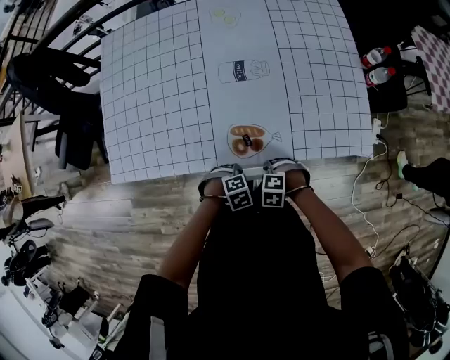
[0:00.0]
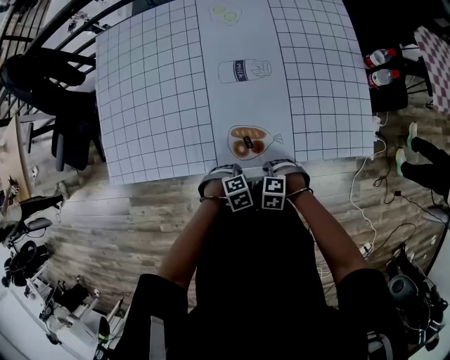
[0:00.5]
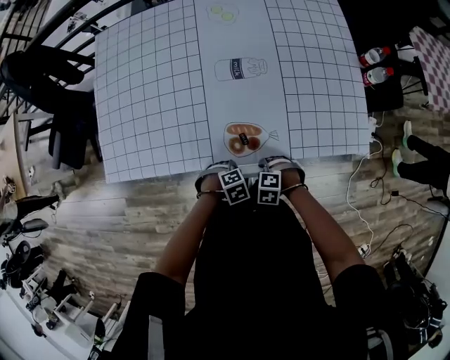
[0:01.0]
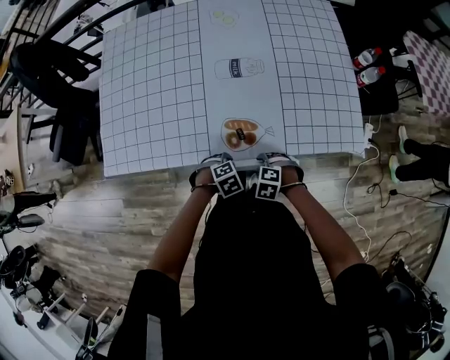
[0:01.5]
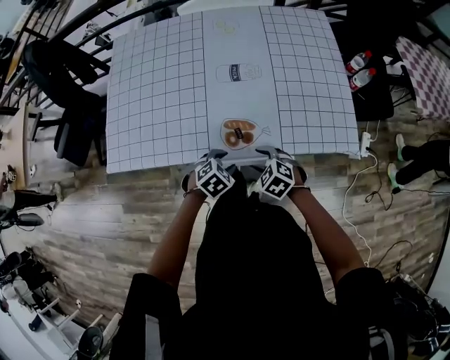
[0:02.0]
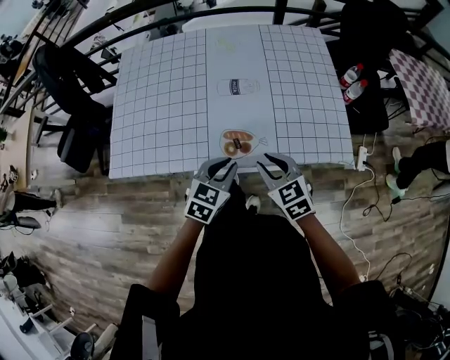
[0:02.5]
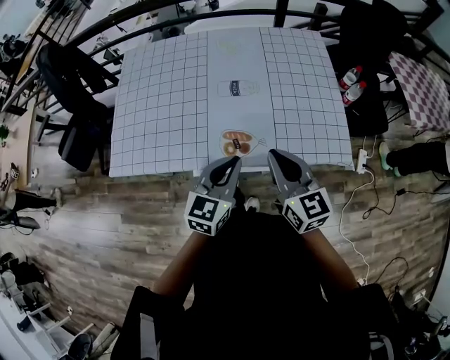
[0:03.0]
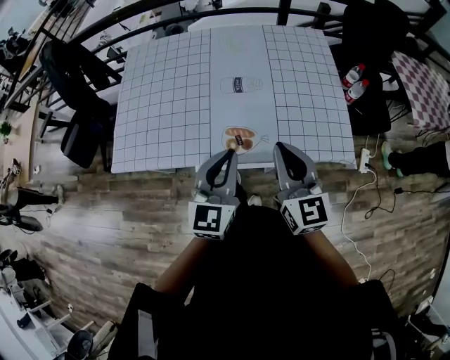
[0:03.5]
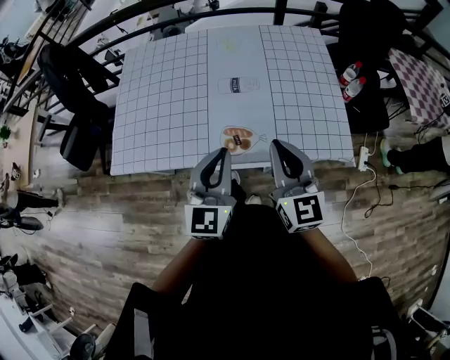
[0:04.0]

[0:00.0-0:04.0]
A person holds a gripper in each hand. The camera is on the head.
0:00.0 to 0:02.0: Both grippers move upward, about 10 cm. The right gripper rotates approximately 30 degrees, and opens up; the left gripper rotates roughly 30 degrees, and opens up.
0:02.0 to 0:04.0: Both grippers move upward, some 30 cm. The left gripper tips its fingers upward by approximately 60 degrees, and closes its fingers, while the right gripper tilts its fingers approximately 50 degrees upward, and closes its fingers.

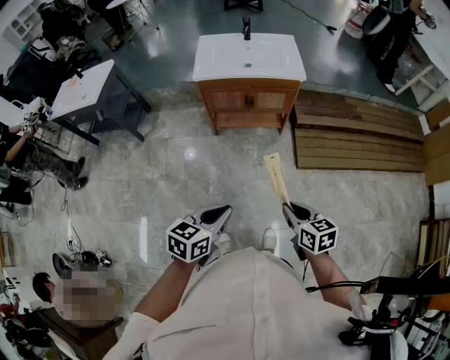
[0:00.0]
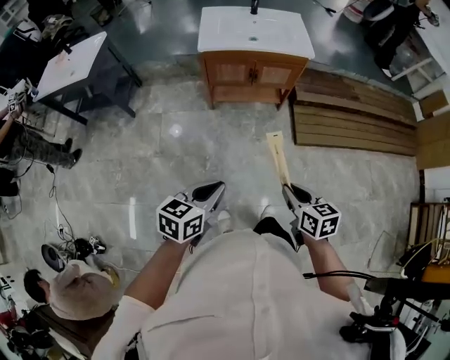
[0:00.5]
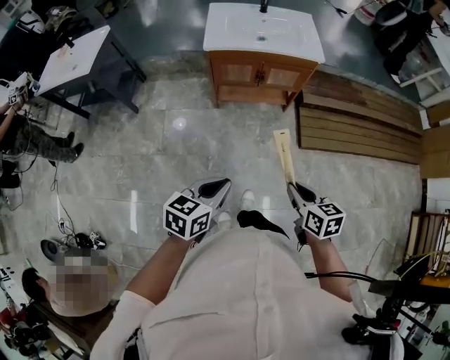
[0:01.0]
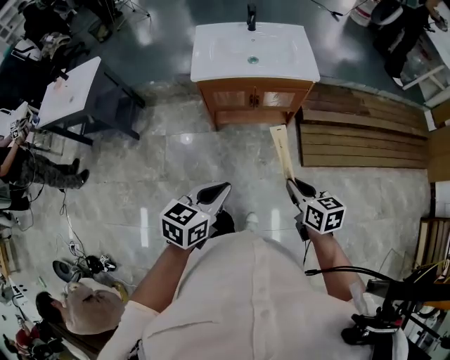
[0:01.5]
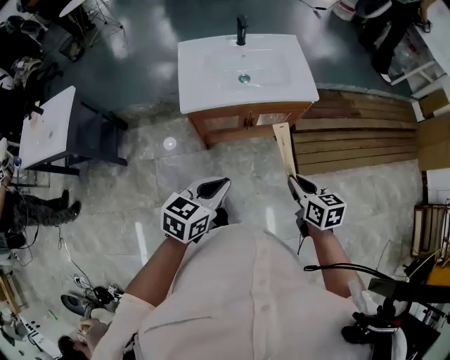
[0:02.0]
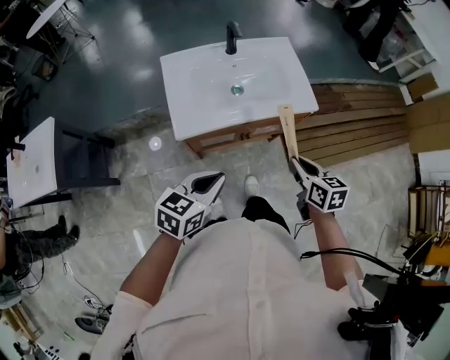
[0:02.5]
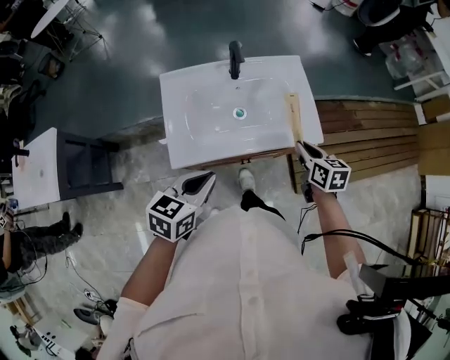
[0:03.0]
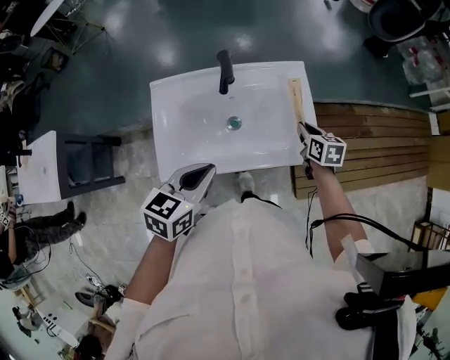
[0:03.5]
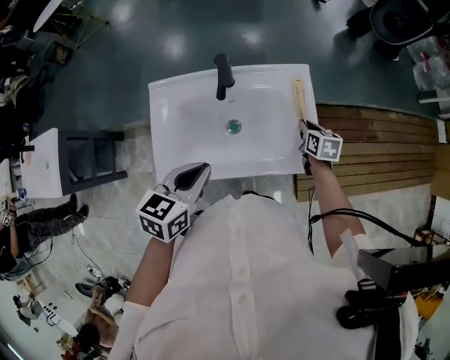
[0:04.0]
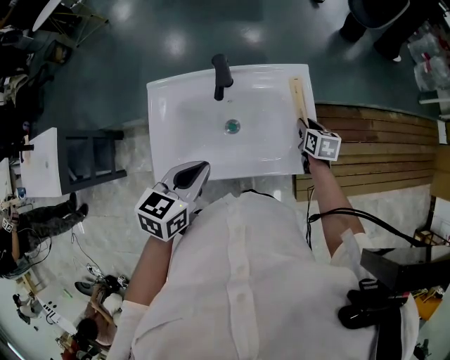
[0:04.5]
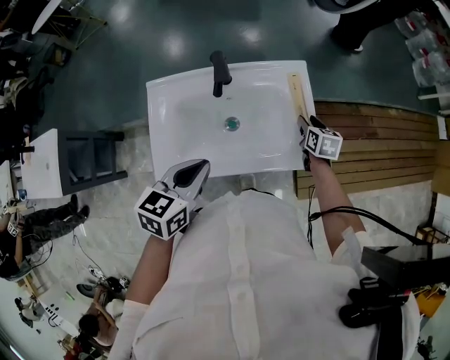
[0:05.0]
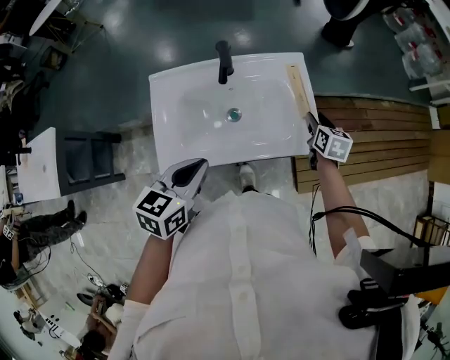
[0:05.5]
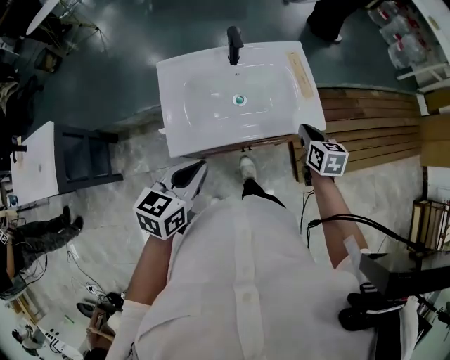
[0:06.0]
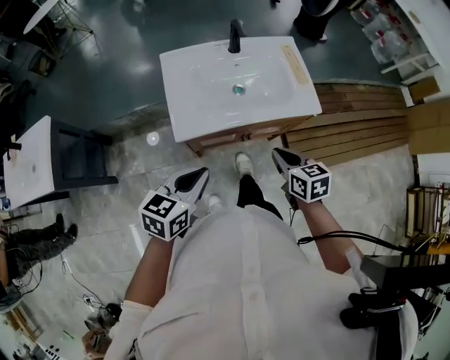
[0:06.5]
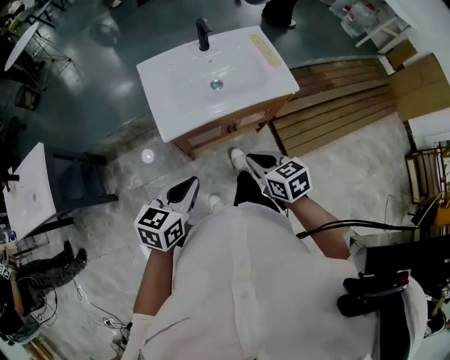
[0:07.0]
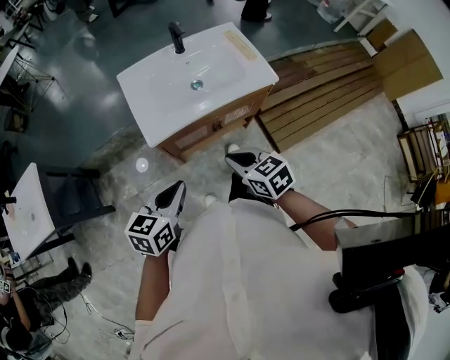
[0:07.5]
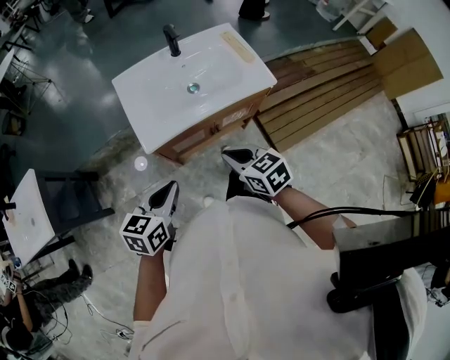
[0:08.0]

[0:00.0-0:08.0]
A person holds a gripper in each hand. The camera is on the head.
0:00.0 to 0:02.0: Both grippers move forward, approximately 35 cm.
0:02.0 to 0:04.0: Both grippers move forward, some 50 cm.
0:04.0 to 0:06.0: The right gripper moves backward and upward, about 20 cm, and opens, then closes again. The left gripper moves backward, some 15 cm.
0:06.0 to 0:08.0: The left gripper heads backward, covering approximately 15 cm, while the right gripper moves backward and to the left, approximately 30 cm, and turns by approximately 20 degrees.

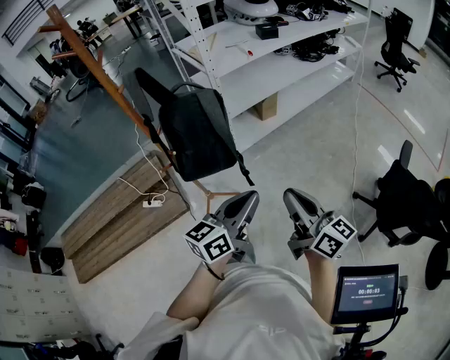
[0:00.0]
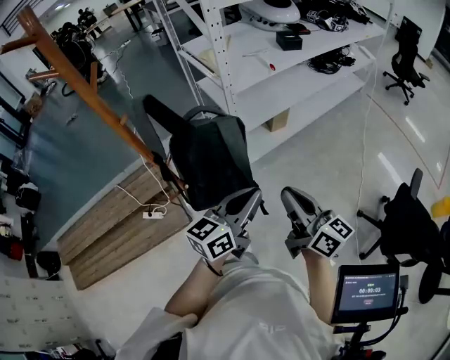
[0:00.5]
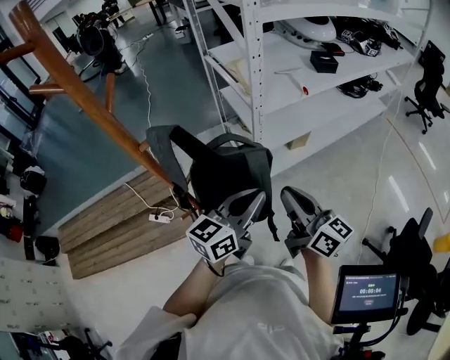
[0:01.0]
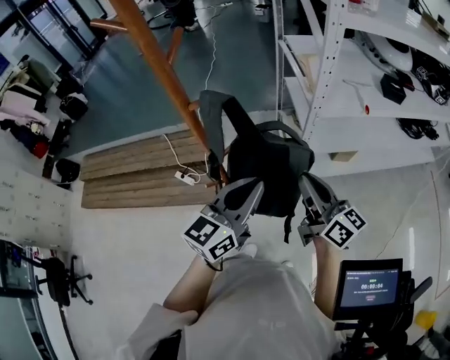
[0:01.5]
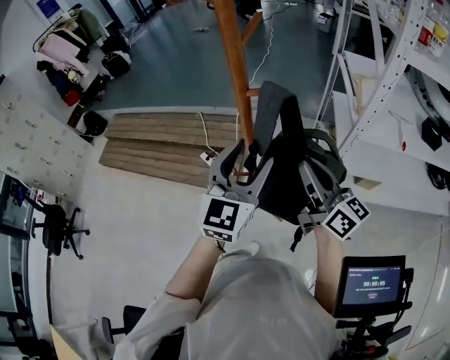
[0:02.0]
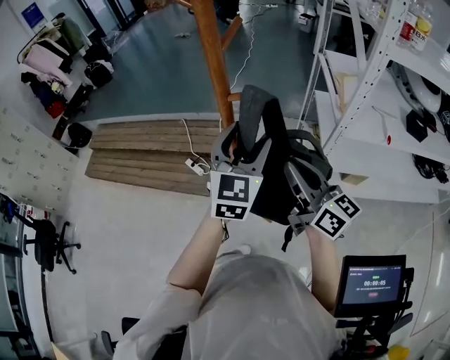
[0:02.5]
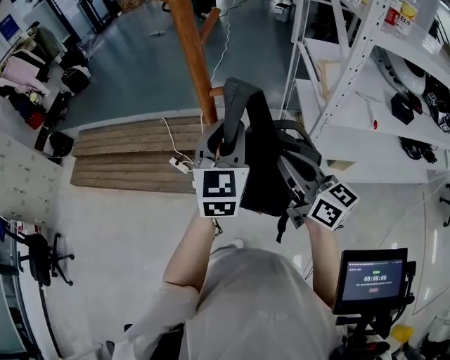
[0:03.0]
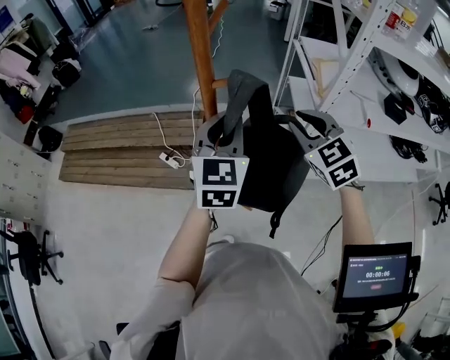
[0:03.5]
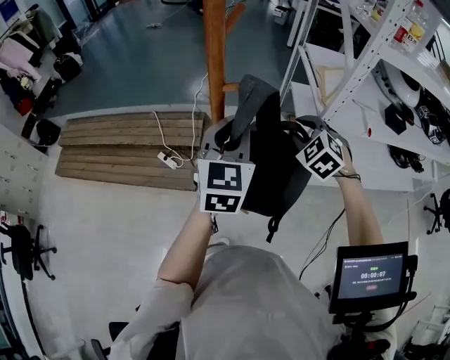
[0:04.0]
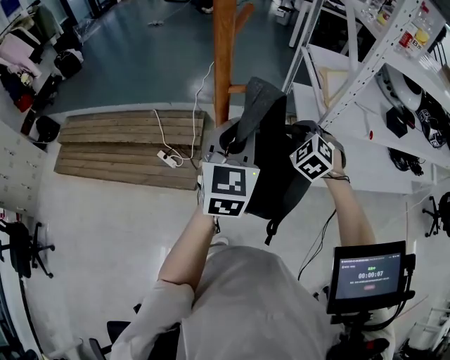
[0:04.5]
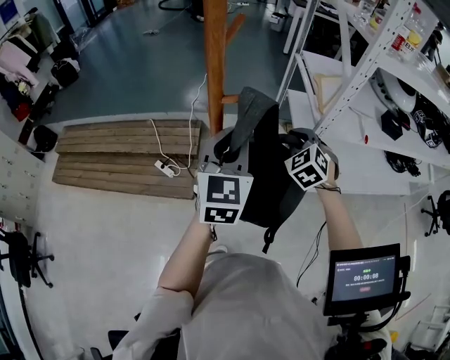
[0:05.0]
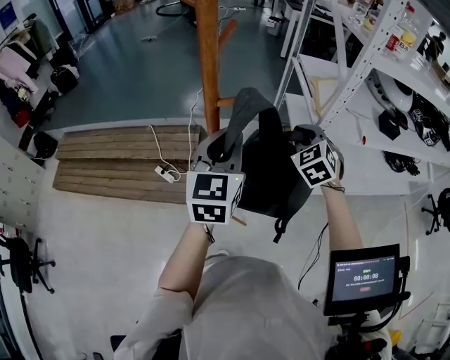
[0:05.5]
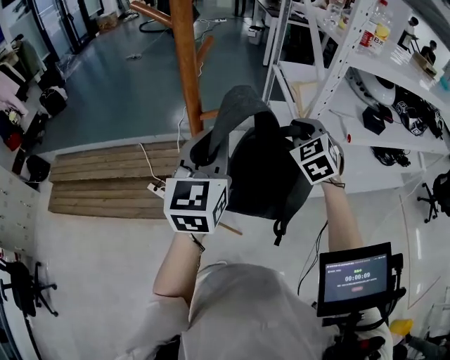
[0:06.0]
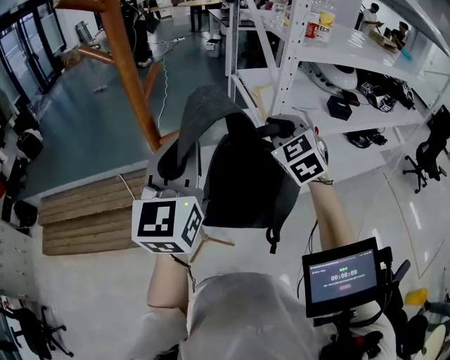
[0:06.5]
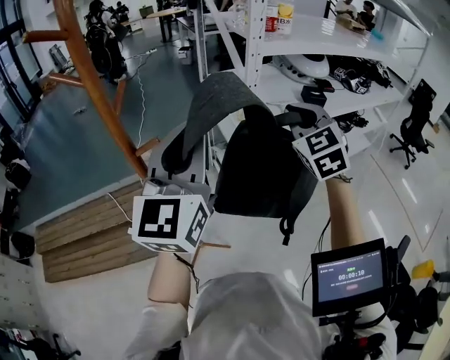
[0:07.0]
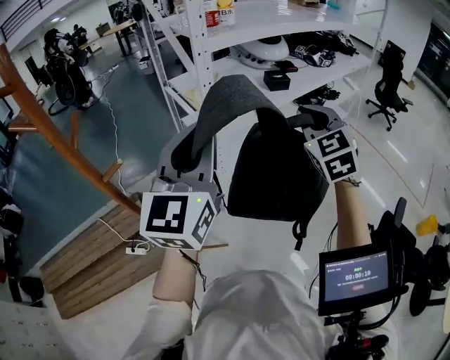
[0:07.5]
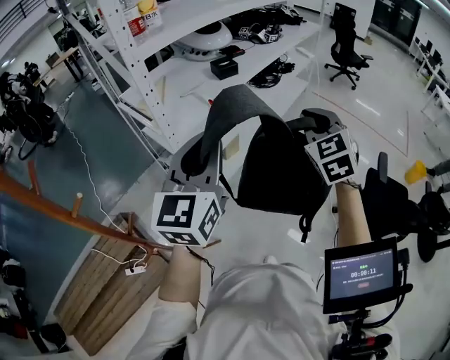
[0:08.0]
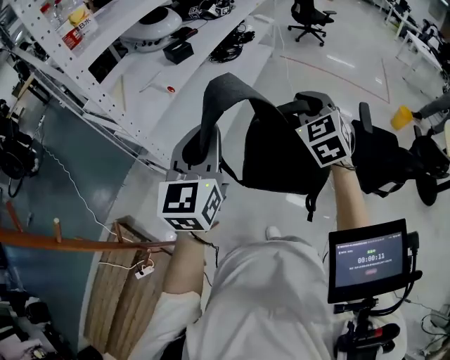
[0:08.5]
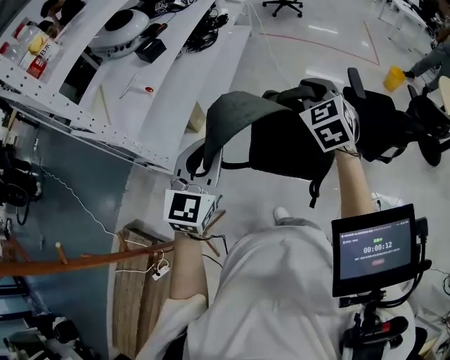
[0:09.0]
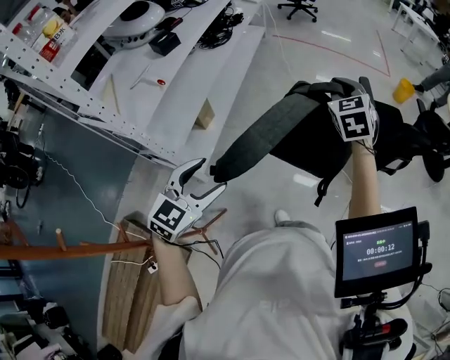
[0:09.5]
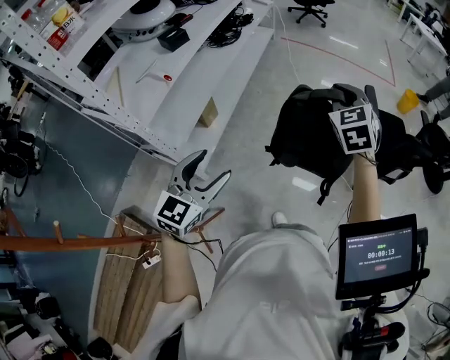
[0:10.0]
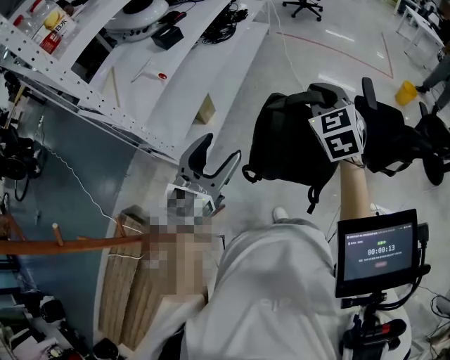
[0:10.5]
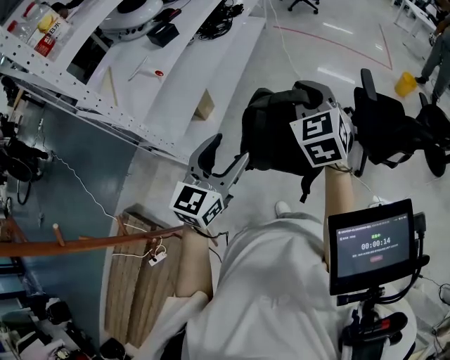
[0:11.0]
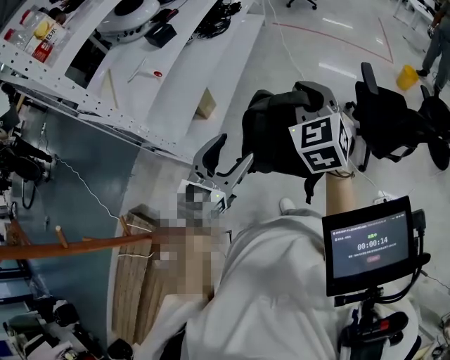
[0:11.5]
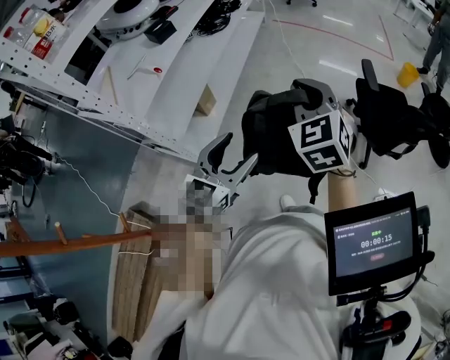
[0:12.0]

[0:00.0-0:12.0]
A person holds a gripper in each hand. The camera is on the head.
0:00.0 to 0:02.0: Both grippers are carried approximately 40 cm. The right gripper rotates roughly 40 degrees. The left gripper rotates about 70 degrees, and opens up.
0:02.0 to 0:04.0: The right gripper travels forward, downward and to the right by about 15 cm, tilts its fingers approximately 50 degrees downward, and opens up; the left gripper heads forward, covering some 5 cm, and closes its fingers.
0:04.0 to 0:06.0: Both grippers travel together upward, approximately 10 cm. The right gripper swivels about 20 degrees, and closes up.
0:06.0 to 0:08.0: The left gripper goes upward and returns, some 10 cm each way, and rotates approximately 50 degrees. Meanwhile the right gripper changes place by about 40 cm, and changes its angle by roughly 50 degrees.
0:08.0 to 0:10.0: The left gripper travels downward by approximately 20 cm, changes its angle by some 40 degrees, and opens up. The right gripper moves some 20 cm, and turns by roughly 30 degrees.
0:10.0 to 0:12.0: The left gripper moves to the right, approximately 5 cm; the right gripper is displaced backward and to the left by roughly 10 cm.

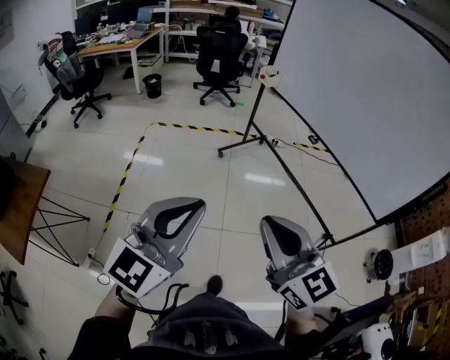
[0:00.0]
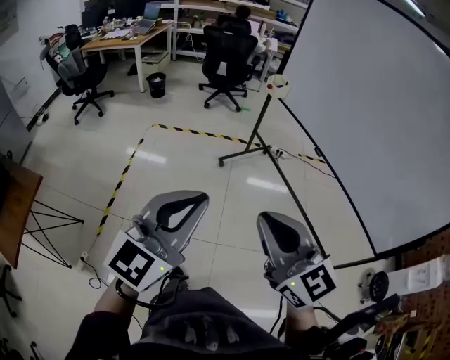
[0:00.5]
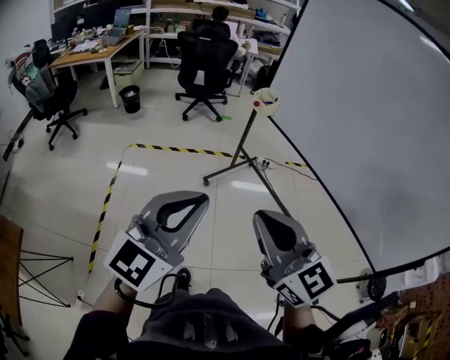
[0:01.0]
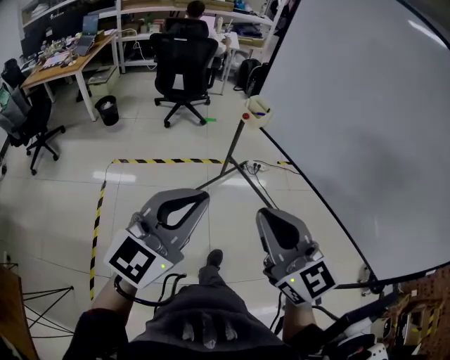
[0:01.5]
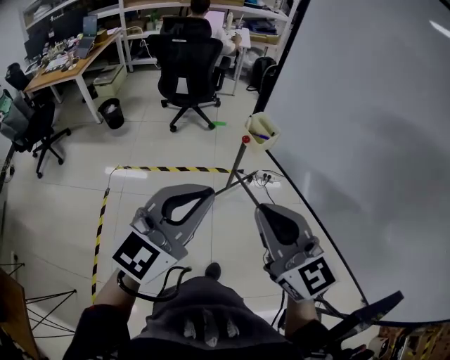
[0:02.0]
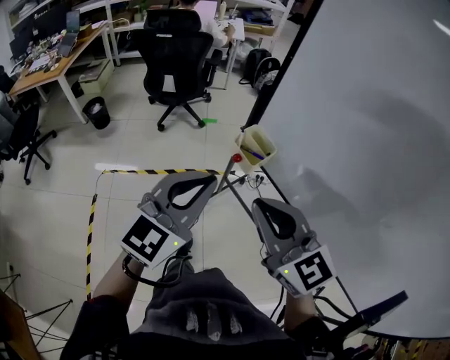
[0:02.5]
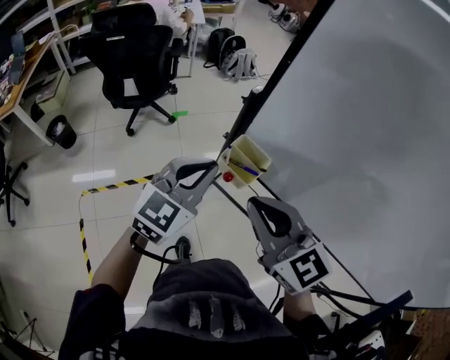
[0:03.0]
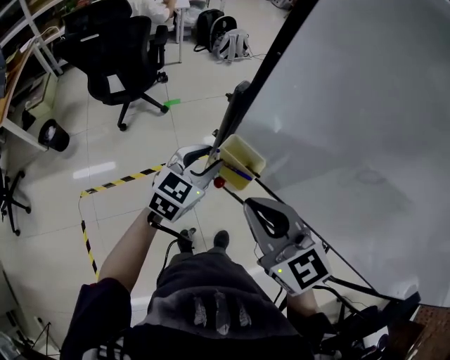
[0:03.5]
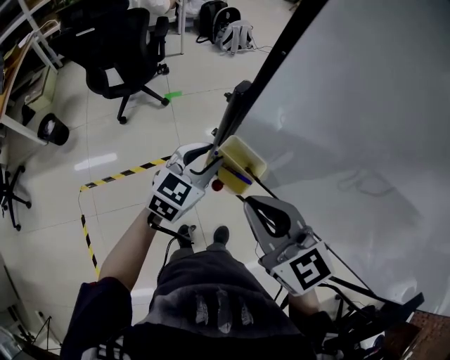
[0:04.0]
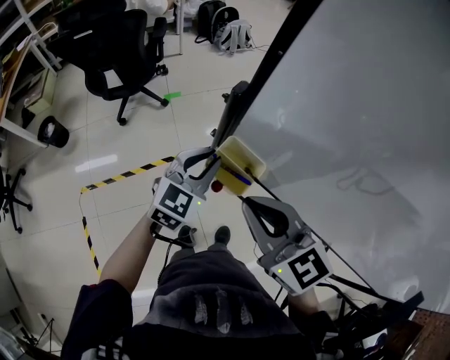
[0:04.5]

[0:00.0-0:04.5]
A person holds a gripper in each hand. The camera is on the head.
0:00.0 to 0:02.0: Both grippers are carried forward, some 70 cm.
0:02.0 to 0:04.5: The left gripper travels forward and downward by about 40 cm, turns by approximately 20 degrees, and opens, then closes once more. The right gripper heads forward, covering about 30 cm, and swivels approximately 20 degrees.
